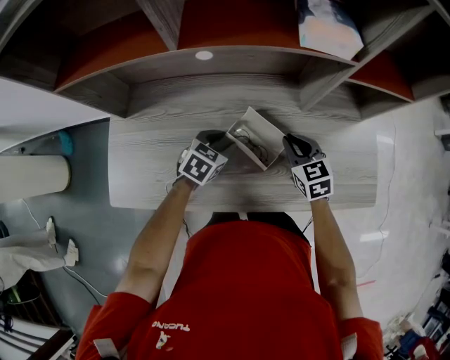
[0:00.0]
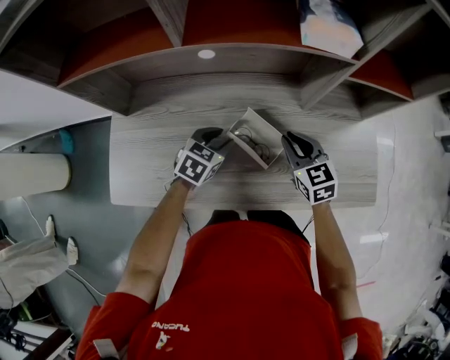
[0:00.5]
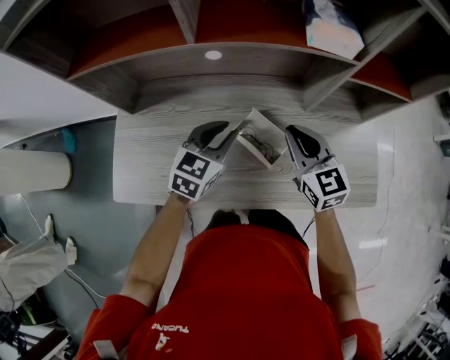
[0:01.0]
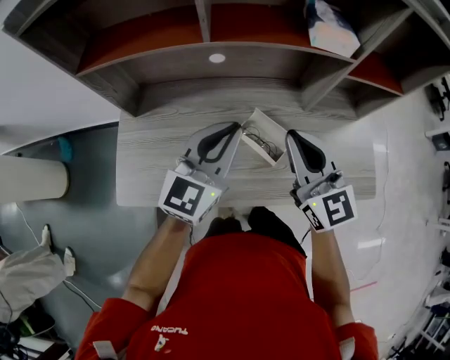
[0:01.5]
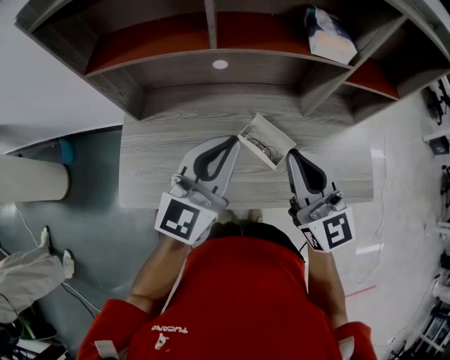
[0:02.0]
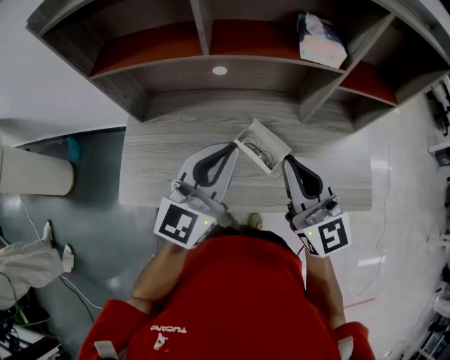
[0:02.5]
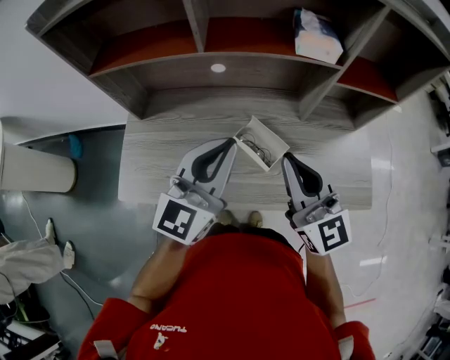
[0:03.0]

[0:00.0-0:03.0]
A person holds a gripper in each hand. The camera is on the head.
0:00.0 to 0:01.5: The two grippers go roughly 25 cm upward. The right gripper tilts its fingers approximately 30 degrees upward, while the left gripper tilts its fingers some 50 degrees upward, and closes its fingers.
0:01.5 to 0:03.0: The left gripper changes place by about 5 cm, while the right gripper moves roughly 5 cm.

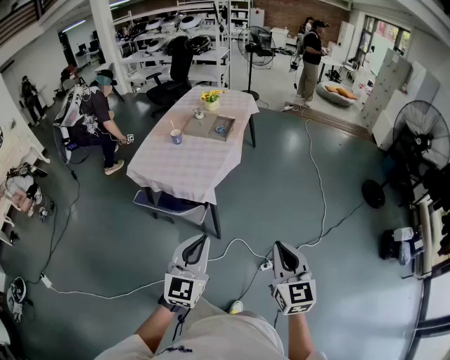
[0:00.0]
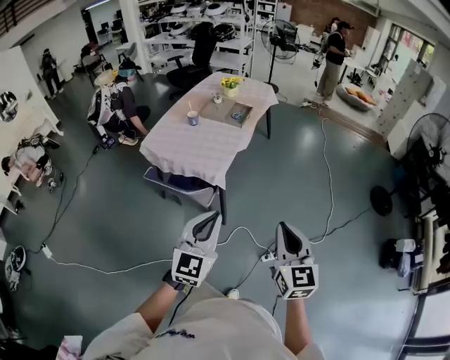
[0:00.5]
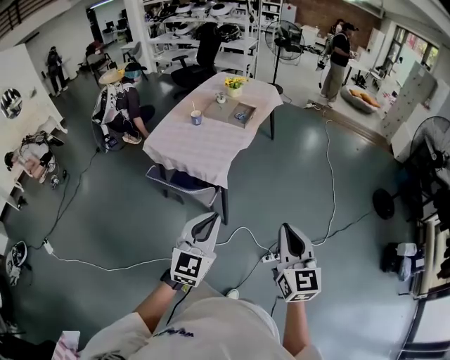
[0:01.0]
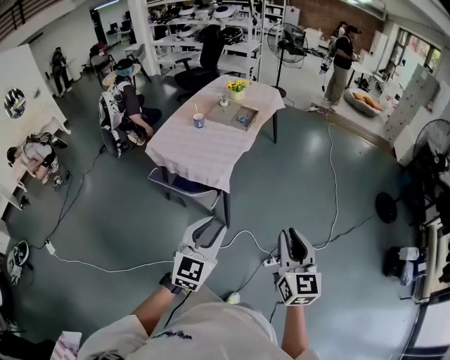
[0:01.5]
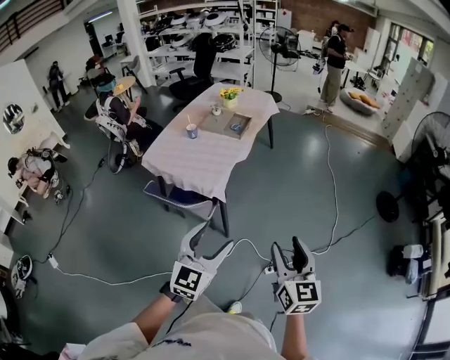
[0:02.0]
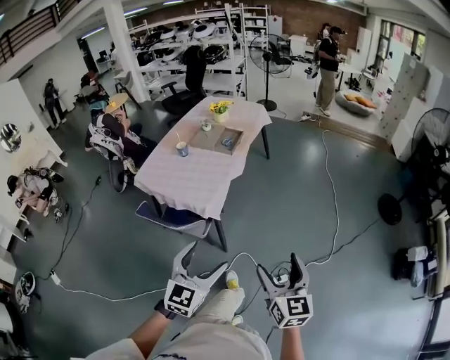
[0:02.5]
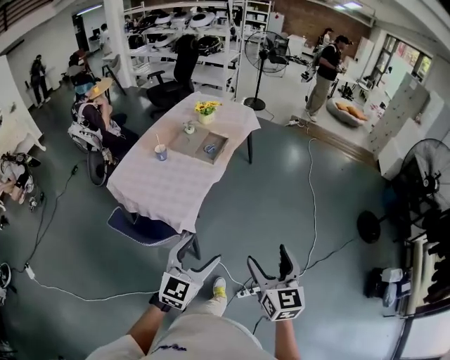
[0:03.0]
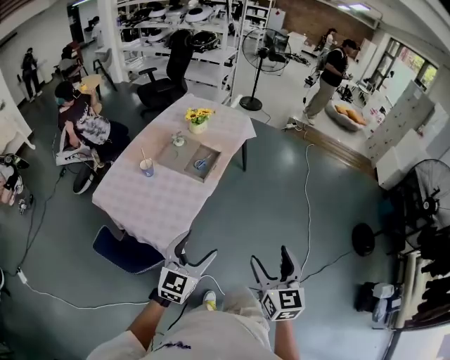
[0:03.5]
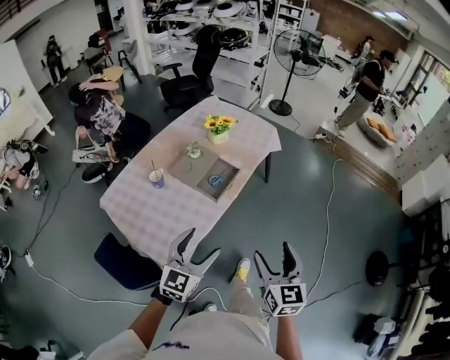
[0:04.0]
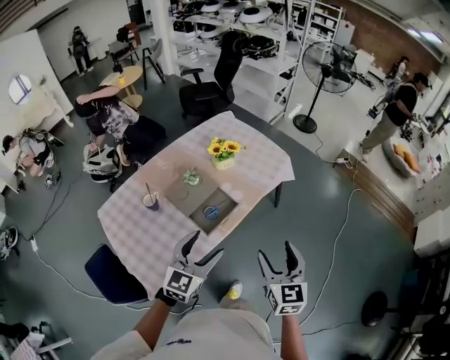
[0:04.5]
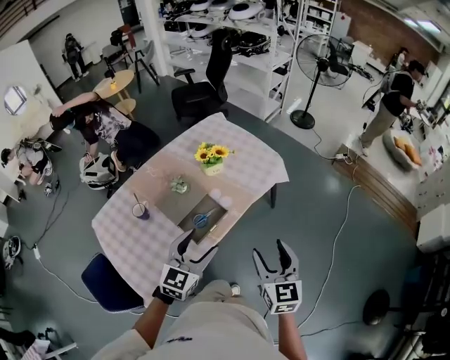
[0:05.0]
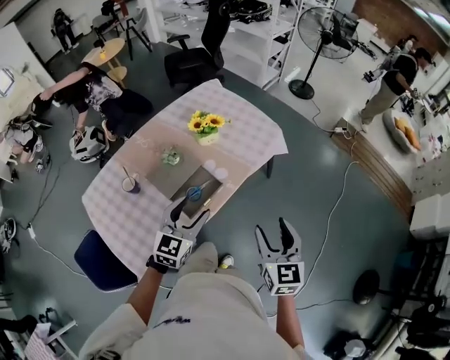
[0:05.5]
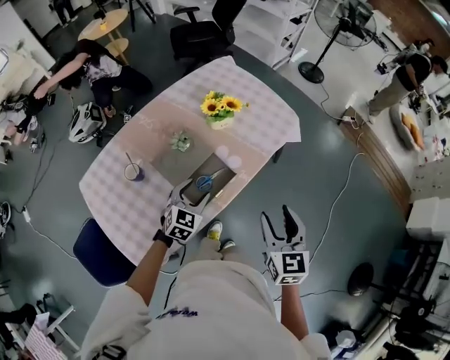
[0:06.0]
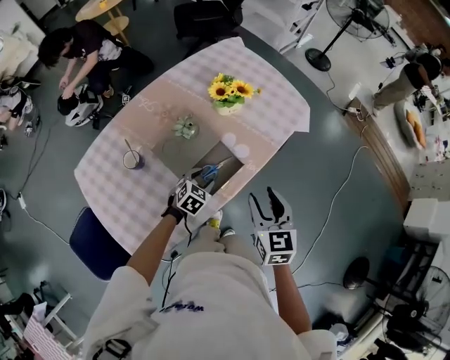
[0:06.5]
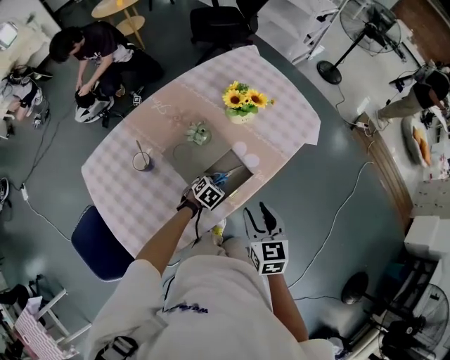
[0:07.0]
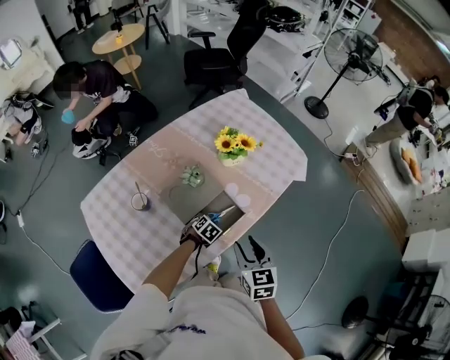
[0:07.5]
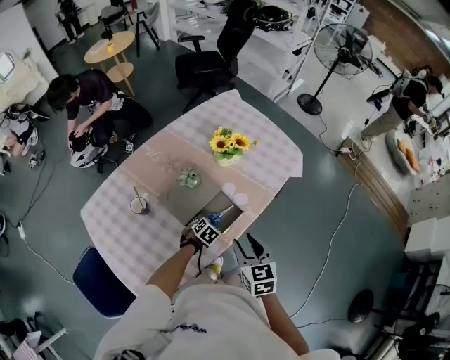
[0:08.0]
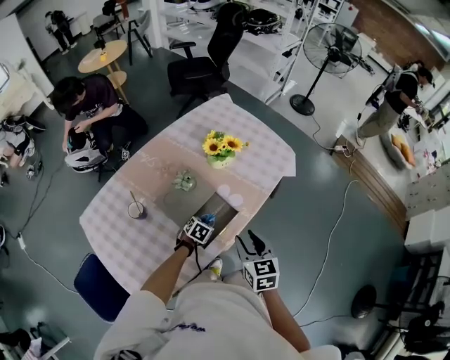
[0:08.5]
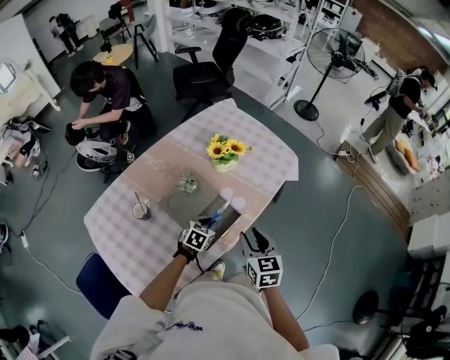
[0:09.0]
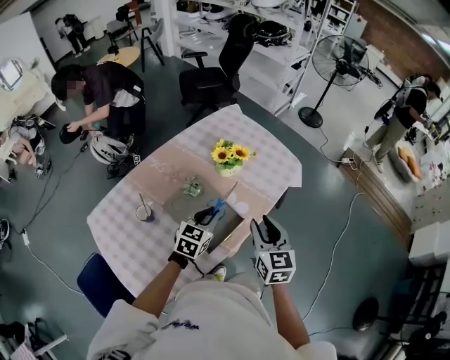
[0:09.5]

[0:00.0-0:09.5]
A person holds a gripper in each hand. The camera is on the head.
0:00.0 to 0:02.0: The left gripper moves to the right, about 5 cm, and opens. Meanwhile the right gripper opens its fingers.
0:02.0 to 0:04.0: Both grippers are carried forward, some 50 cm.
0:04.0 to 0:05.5: Both grippers move forward, roughly 30 cm.
0:05.5 to 0:07.5: The right gripper goes some 25 cm to the left and downward, and changes its angle by about 20 degrees; the left gripper is displaced downward by about 35 cm, points its fingers roughly 50 degrees further downward, and closes its fingers.
0:07.5 to 0:09.5: The left gripper goes roughly 25 cm upward, and angles its fingers upward, by some 40 degrees; the right gripper travels upward and forward by about 10 cm.

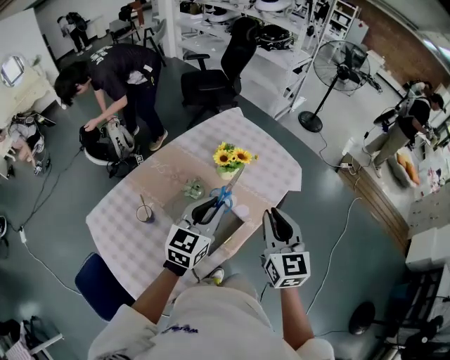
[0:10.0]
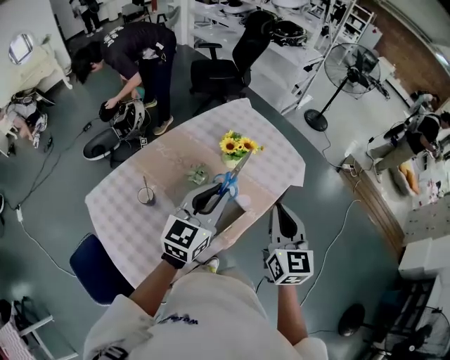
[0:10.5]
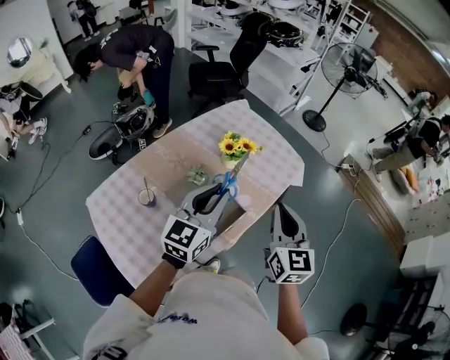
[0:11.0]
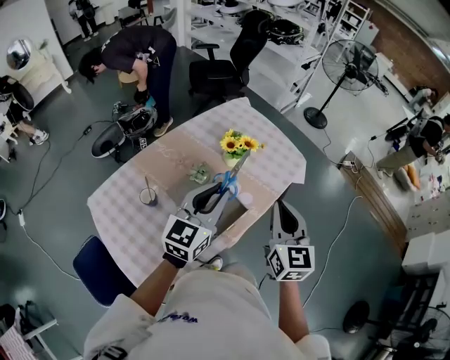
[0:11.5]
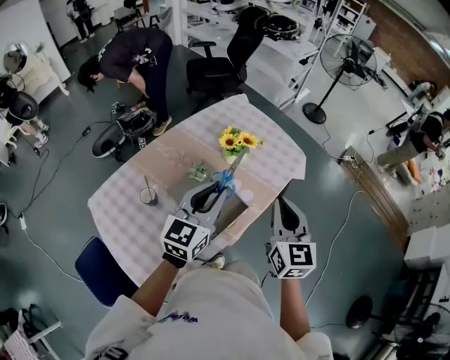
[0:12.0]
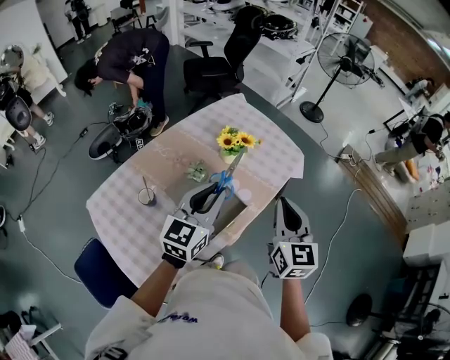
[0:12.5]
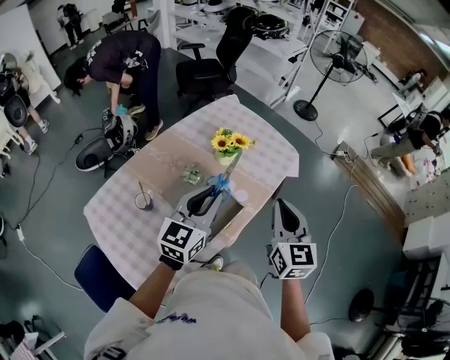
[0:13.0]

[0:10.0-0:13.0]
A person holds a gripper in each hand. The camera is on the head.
0:10.0 to 0:13.0: The grippers make only small movements.

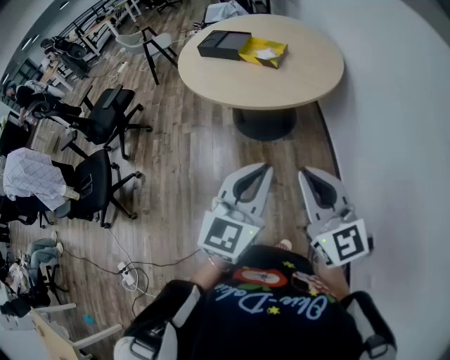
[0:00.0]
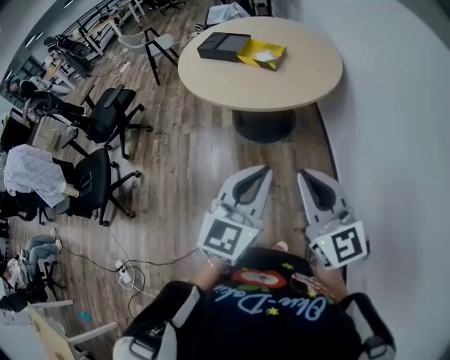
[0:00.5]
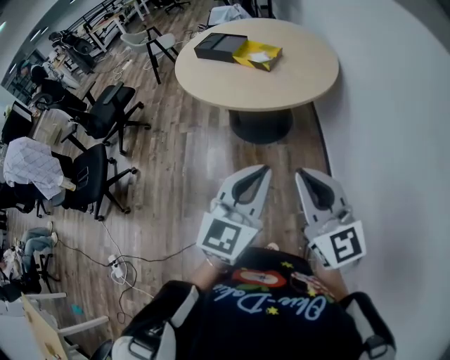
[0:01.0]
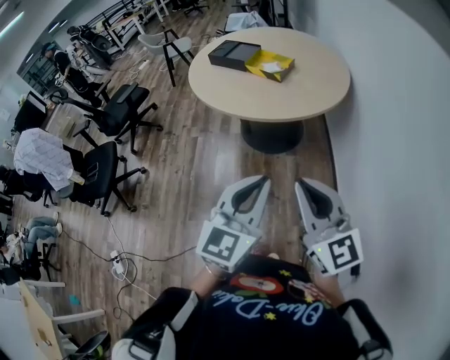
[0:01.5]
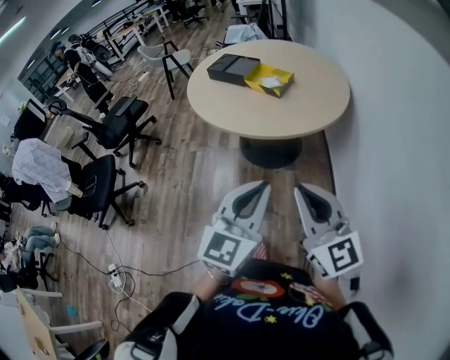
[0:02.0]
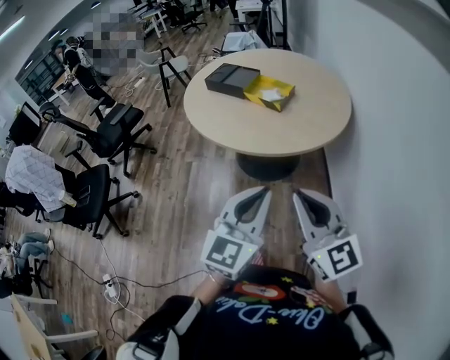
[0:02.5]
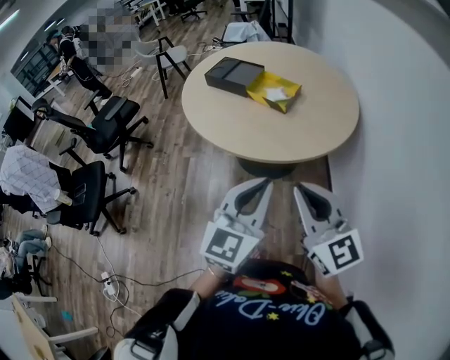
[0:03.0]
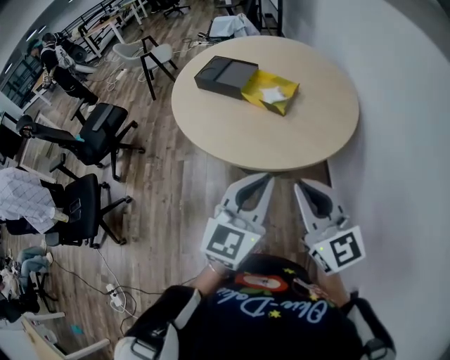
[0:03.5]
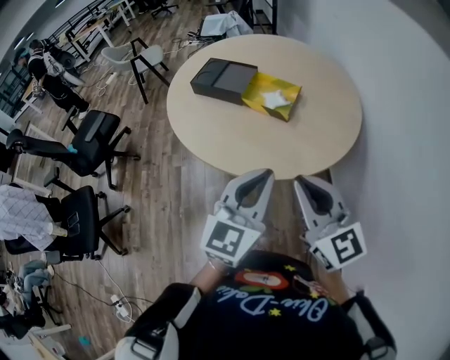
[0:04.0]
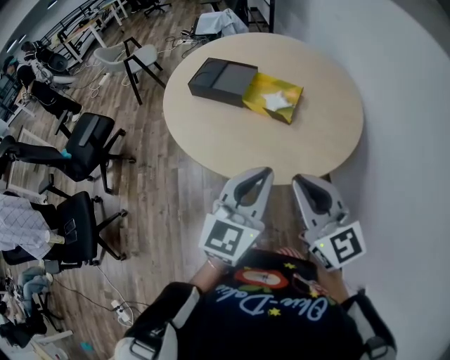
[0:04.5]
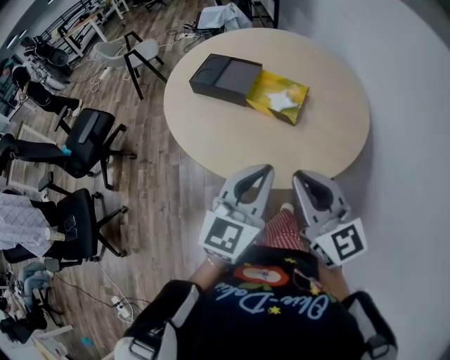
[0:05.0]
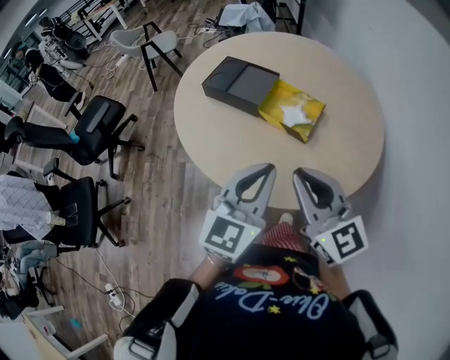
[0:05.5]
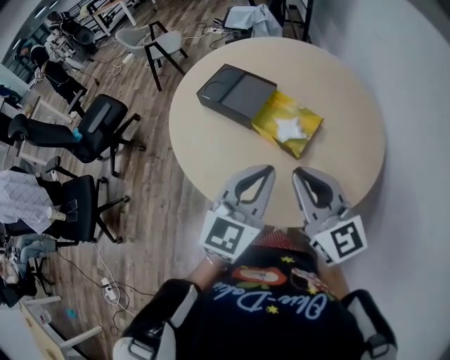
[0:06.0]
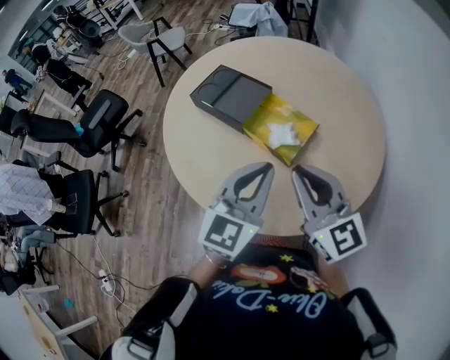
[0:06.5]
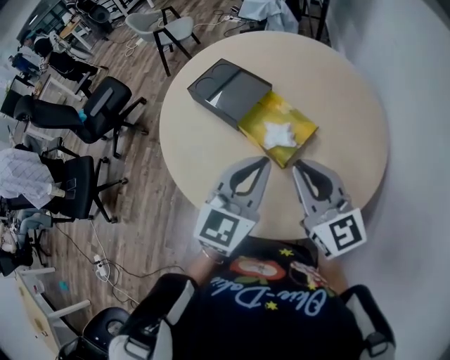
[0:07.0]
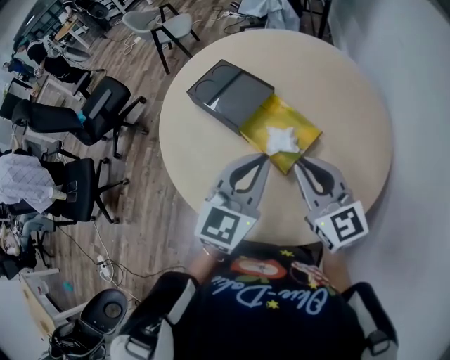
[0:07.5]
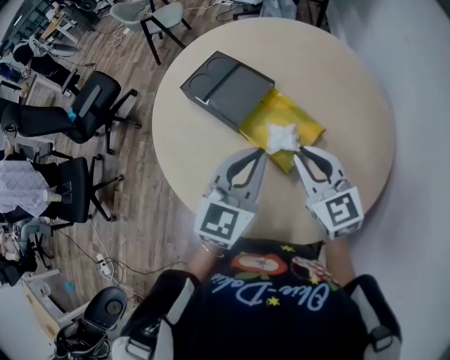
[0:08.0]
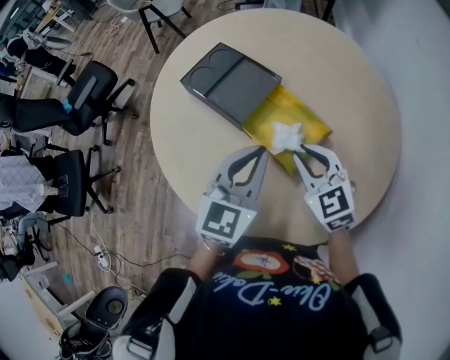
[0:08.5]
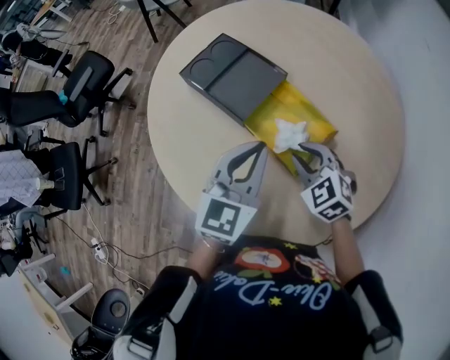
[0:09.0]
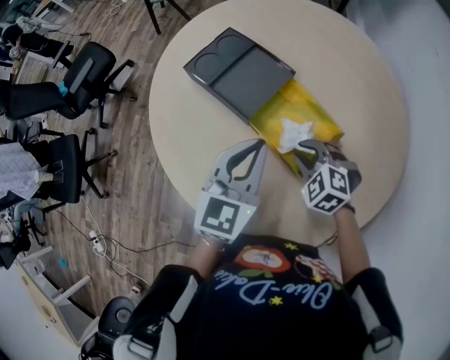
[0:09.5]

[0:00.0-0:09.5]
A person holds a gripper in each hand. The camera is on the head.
0:00.0 to 0:02.0: Both grippers travel together to the right, some 5 cm.
0:02.0 to 0:04.0: The grippers both shift forward by approximately 25 cm.
0:04.0 to 0:05.5: Both grippers move forward, some 10 cm.
0:05.5 to 0:07.5: The grippers both shift forward and to the right by roughly 20 cm.
0:07.5 to 0:09.5: The left gripper moves forward and downward, roughly 10 cm. Meanwhile the right gripper heads downward, covering roughly 20 cm, and tips its fingers downward by some 50 degrees.

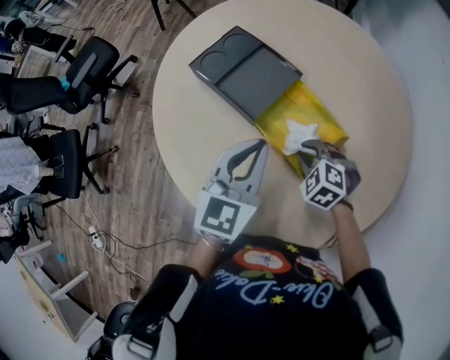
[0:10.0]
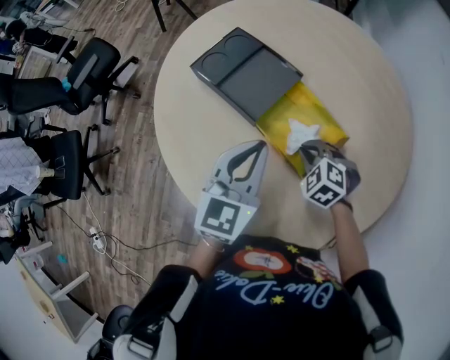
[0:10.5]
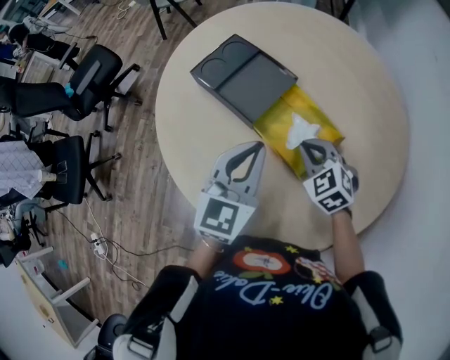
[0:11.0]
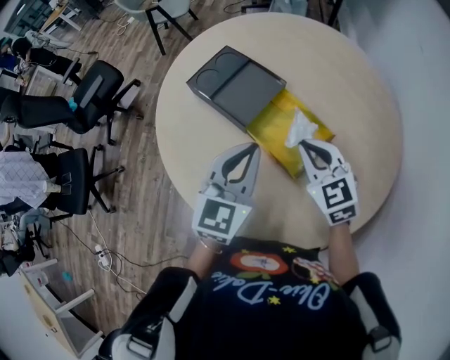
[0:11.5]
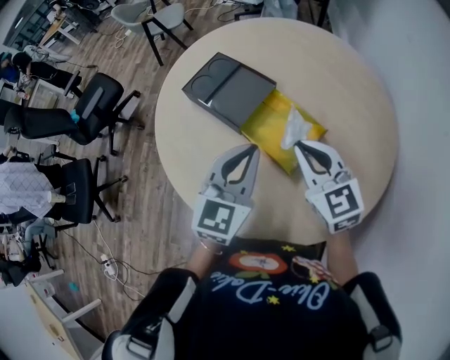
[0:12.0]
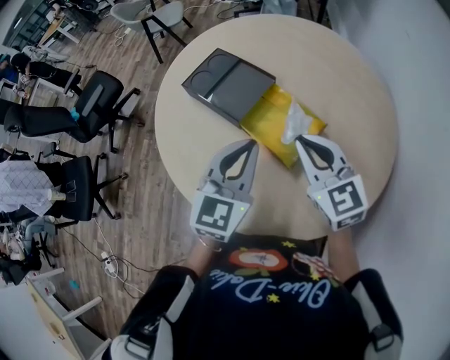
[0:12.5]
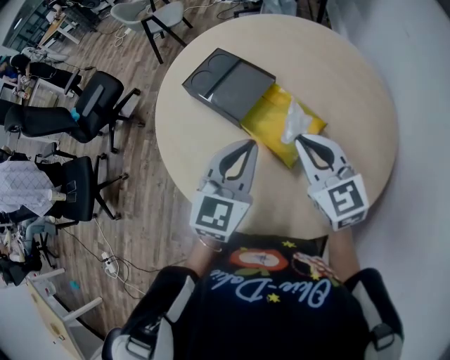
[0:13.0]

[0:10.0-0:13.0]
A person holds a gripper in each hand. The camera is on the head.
0:10.0 to 0:11.5: The right gripper goes some 15 cm upward, and tilts its fingers about 30 degrees upward.
0:11.5 to 0:13.0: The right gripper goes about 5 cm upward.
